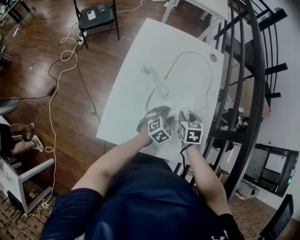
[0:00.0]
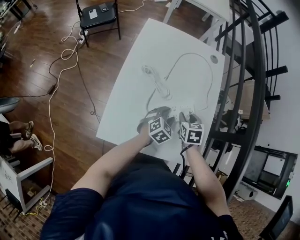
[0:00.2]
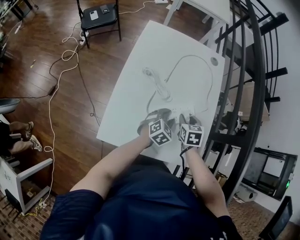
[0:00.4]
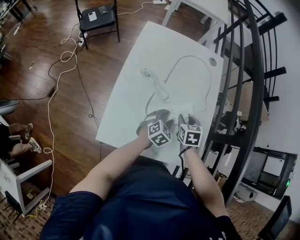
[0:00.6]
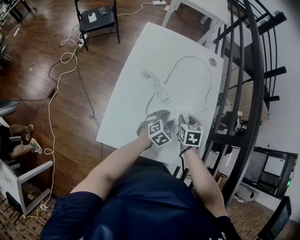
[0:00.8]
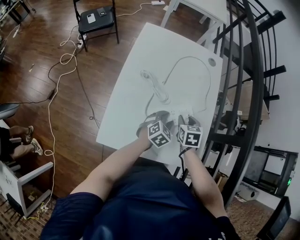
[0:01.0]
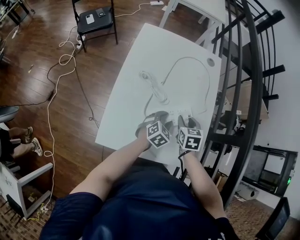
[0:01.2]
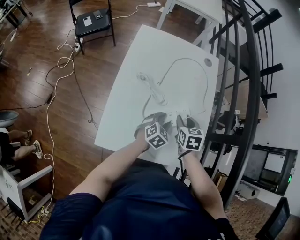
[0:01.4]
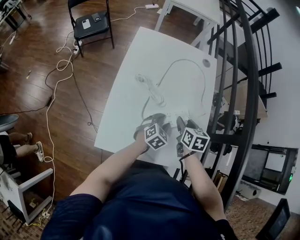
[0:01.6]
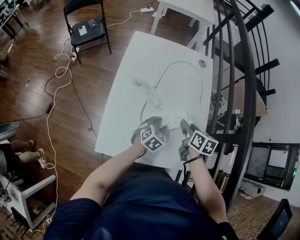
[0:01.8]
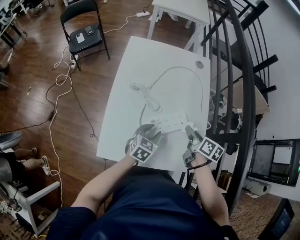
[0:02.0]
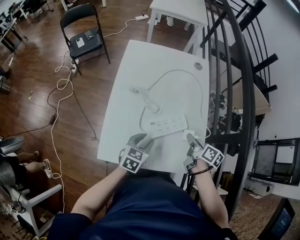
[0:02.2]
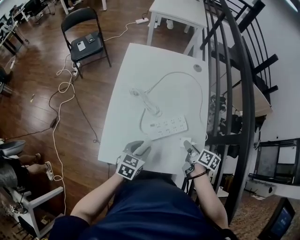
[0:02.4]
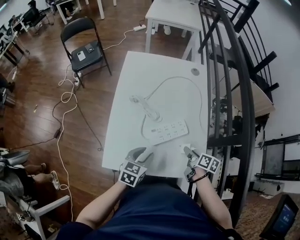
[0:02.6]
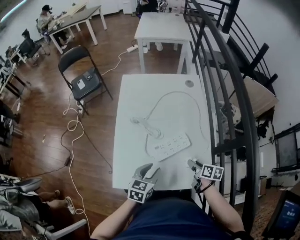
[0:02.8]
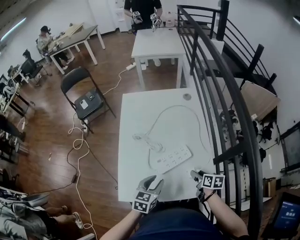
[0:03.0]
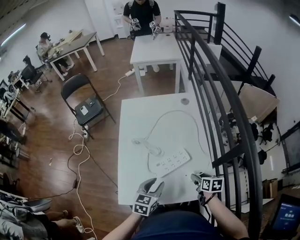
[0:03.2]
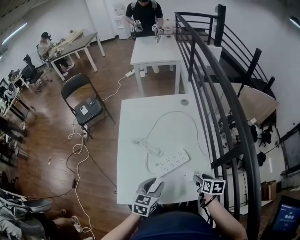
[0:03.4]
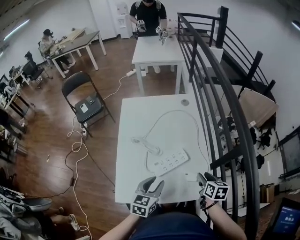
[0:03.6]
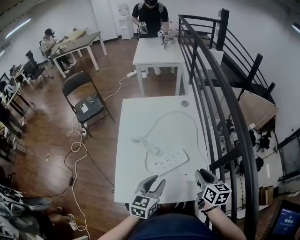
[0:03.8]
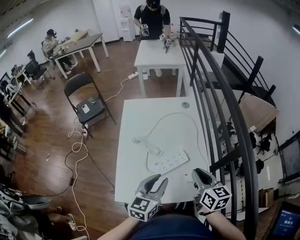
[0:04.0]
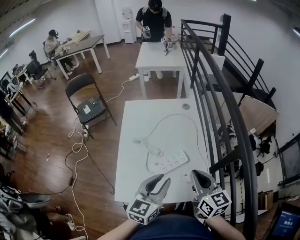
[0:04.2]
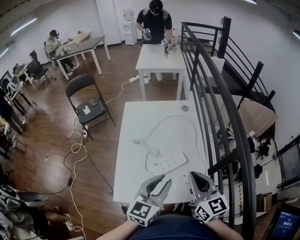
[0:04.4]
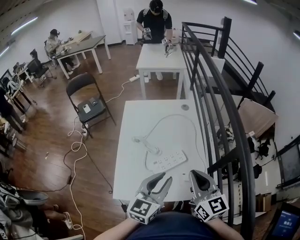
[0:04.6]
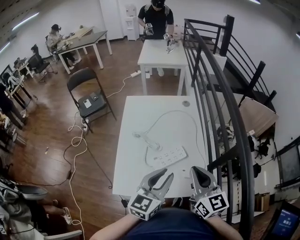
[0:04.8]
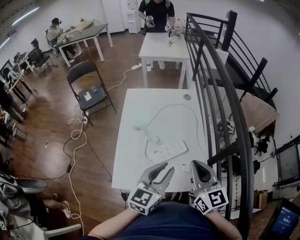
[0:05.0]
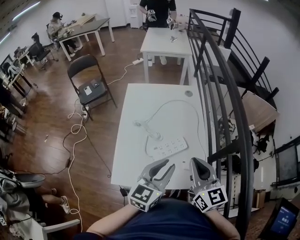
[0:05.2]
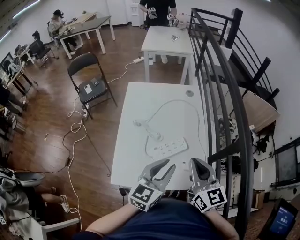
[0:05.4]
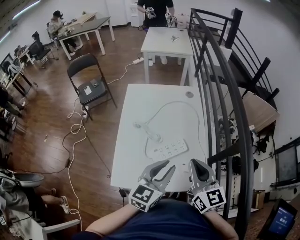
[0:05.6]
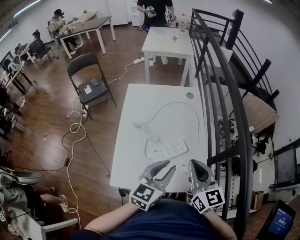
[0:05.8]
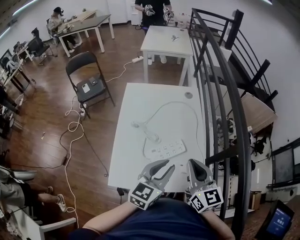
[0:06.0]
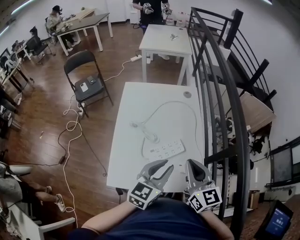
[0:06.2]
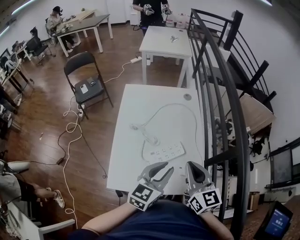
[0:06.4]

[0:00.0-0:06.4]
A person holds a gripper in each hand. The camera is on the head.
0:00.0 to 0:01.6: There are only small adjustments of the grippers.
0:01.6 to 0:03.2: The left gripper goes about 15 cm upward, backward and to the left. Meanwhile the right gripper shifts roughly 15 cm backward and to the right, swivels some 20 degrees, and opens its fingers.
0:03.2 to 0:04.8: The right gripper goes approximately 30 cm upward, tilts its fingers roughly 40 degrees upward, and closes its fingers, while the left gripper shifts roughly 20 cm upward, and changes its angle by about 30 degrees.
0:04.8 to 0:06.4: The grippers move only a little.

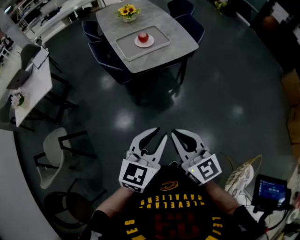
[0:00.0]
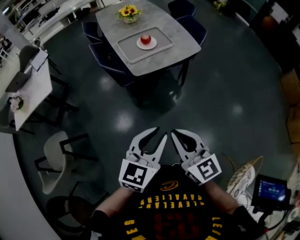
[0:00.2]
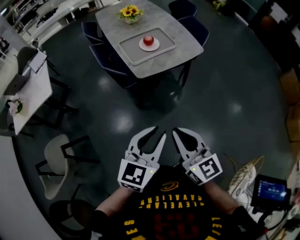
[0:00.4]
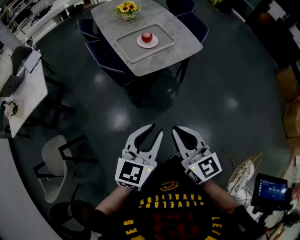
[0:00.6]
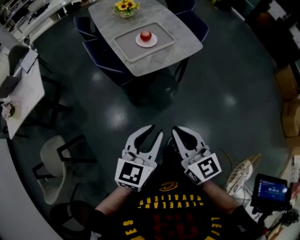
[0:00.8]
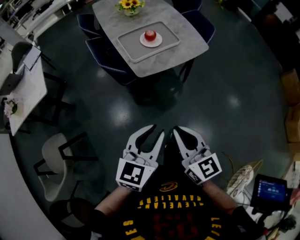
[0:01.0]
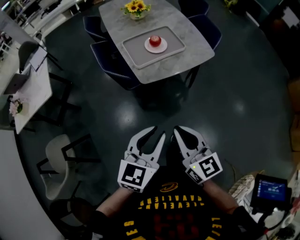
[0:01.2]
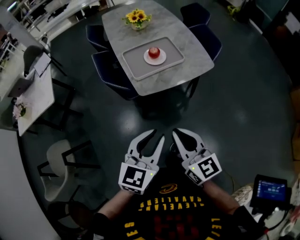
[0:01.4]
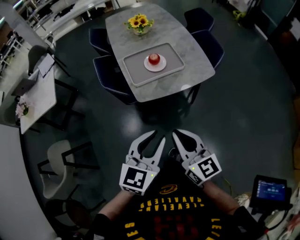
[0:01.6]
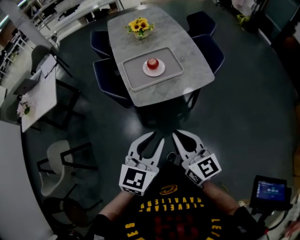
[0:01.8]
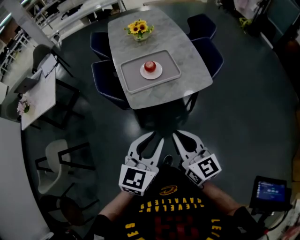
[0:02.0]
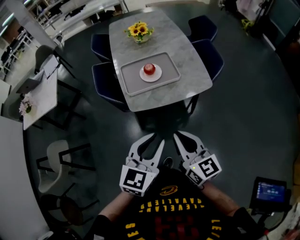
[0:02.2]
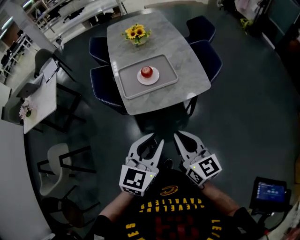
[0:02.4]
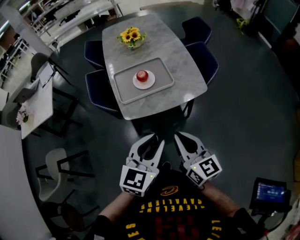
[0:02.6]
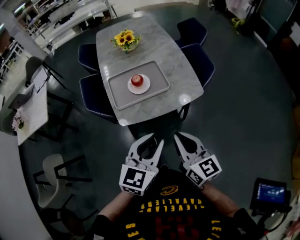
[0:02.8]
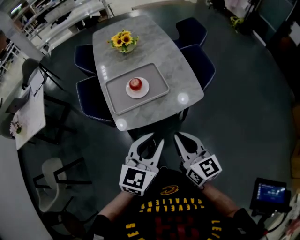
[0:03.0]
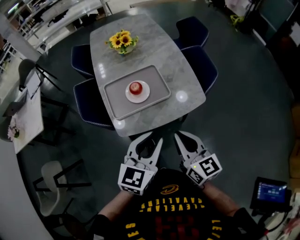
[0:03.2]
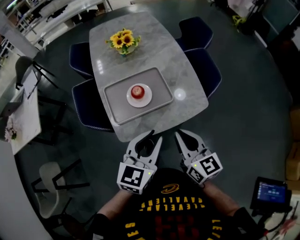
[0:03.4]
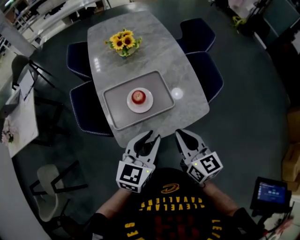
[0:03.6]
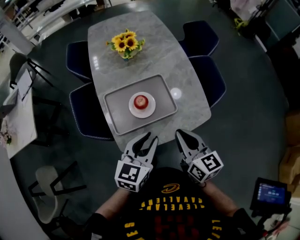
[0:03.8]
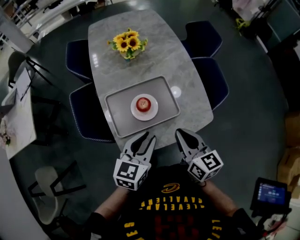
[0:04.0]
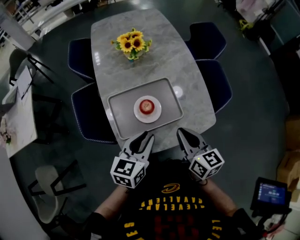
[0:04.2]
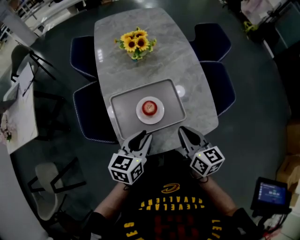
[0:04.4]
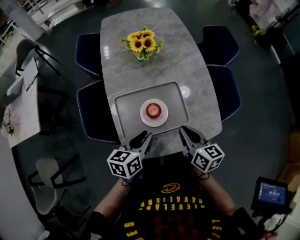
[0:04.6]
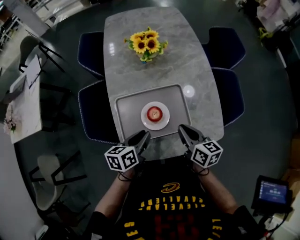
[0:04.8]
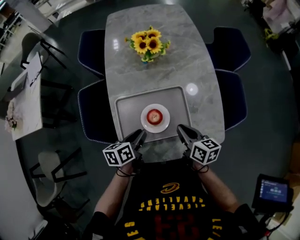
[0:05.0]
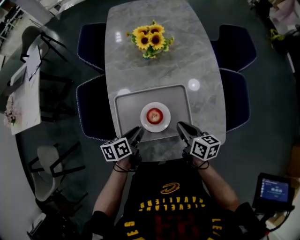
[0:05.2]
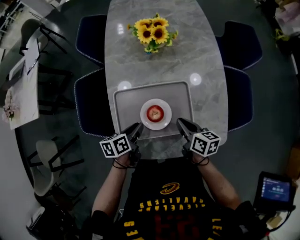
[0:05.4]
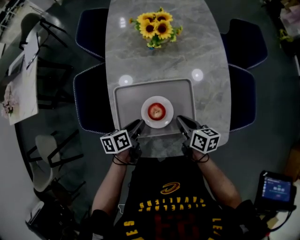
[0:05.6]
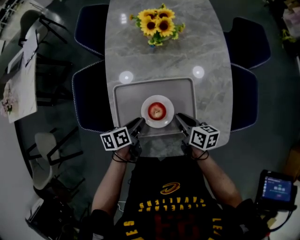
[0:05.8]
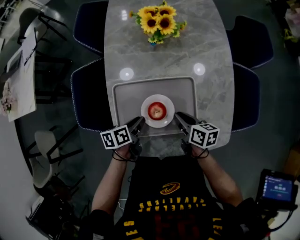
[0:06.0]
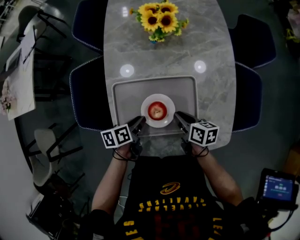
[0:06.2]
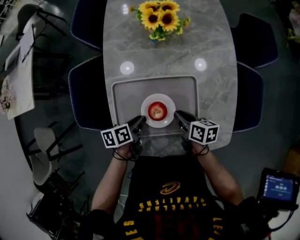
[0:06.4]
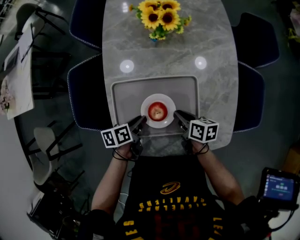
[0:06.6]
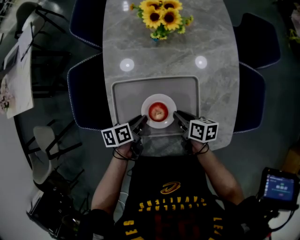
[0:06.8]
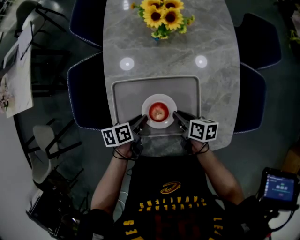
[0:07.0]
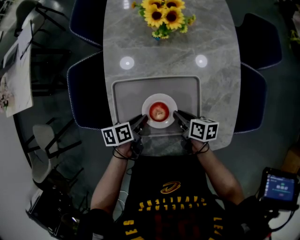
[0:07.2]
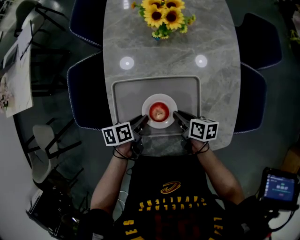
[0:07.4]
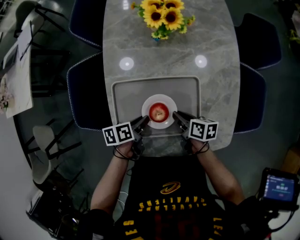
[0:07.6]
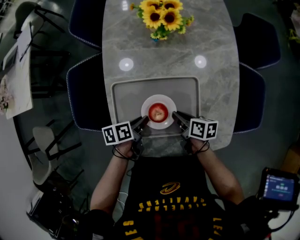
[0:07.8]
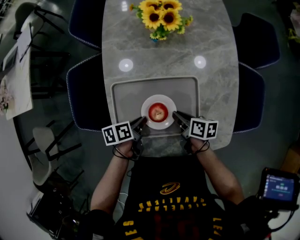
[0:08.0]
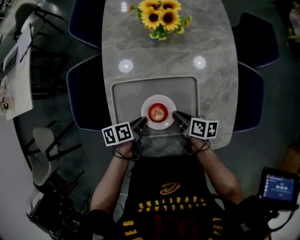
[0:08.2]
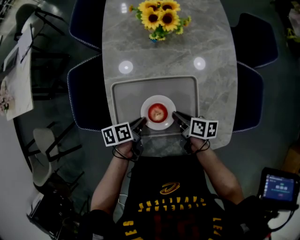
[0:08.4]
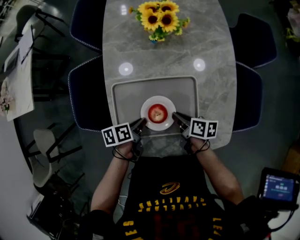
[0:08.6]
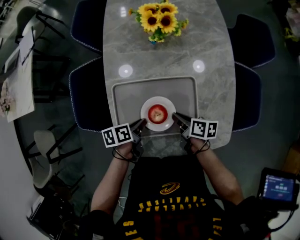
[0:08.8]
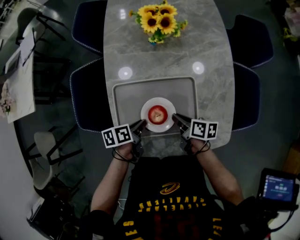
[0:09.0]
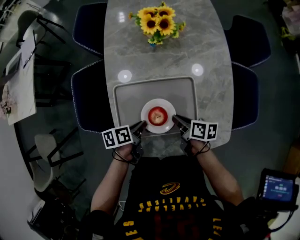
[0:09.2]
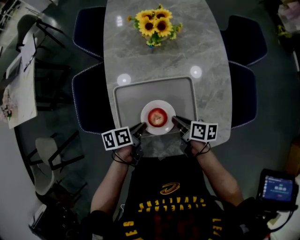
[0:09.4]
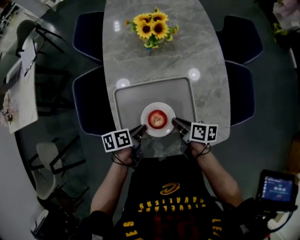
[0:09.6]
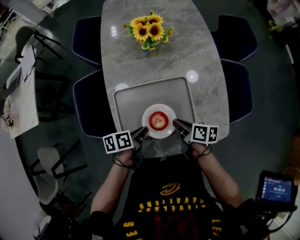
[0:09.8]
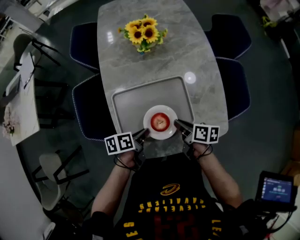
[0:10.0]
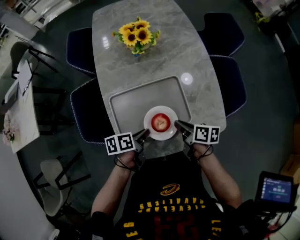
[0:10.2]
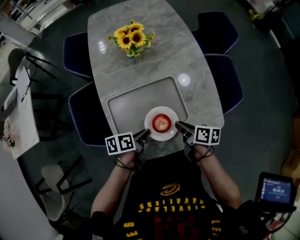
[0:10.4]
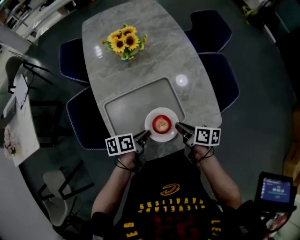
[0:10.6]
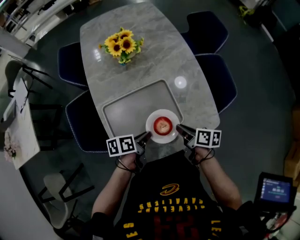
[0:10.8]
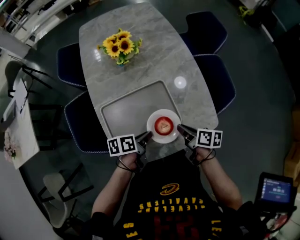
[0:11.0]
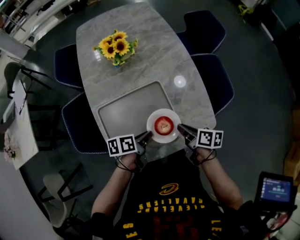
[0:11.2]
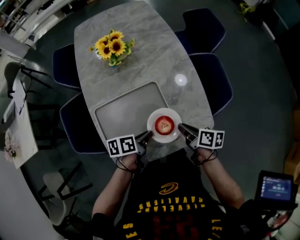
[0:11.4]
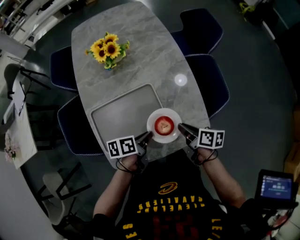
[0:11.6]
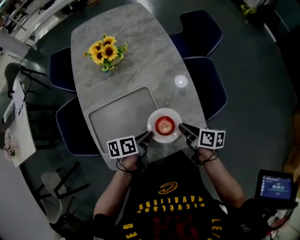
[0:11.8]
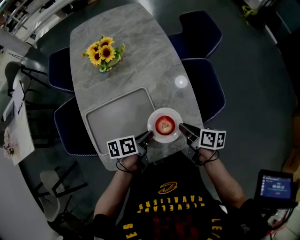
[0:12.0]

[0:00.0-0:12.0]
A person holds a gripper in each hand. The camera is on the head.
0:00.0 to 0:01.6: Both grippers move forward, about 20 cm.
0:01.6 to 0:03.0: Both grippers travel together forward and to the right, approximately 20 cm.
0:03.0 to 0:04.4: The right gripper goes some 25 cm forward. The left gripper travels forward, to the left and downward by some 30 cm, and rotates approximately 30 degrees.
0:04.4 to 0:06.0: Both grippers move downward and forward, some 25 cm. The left gripper twists approximately 40 degrees counterclockwise, seen from behind, while the right gripper rotates about 30 degrees.
0:06.0 to 0:09.0: The grippers move only a little.
0:09.0 to 0:10.4: The right gripper heads backward and upward, covering approximately 10 cm. Meanwhile the left gripper heads upward, covering approximately 5 cm.
0:10.4 to 0:12.0: Both grippers move to the right, some 15 cm.

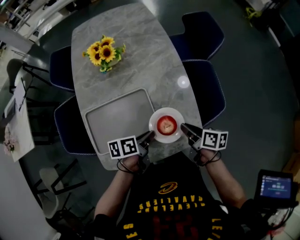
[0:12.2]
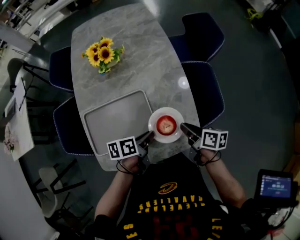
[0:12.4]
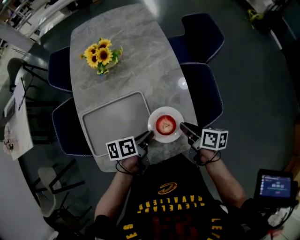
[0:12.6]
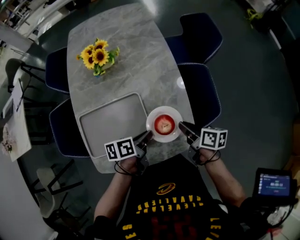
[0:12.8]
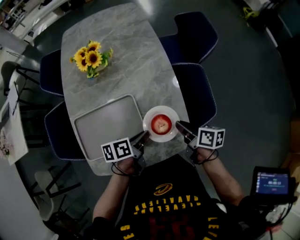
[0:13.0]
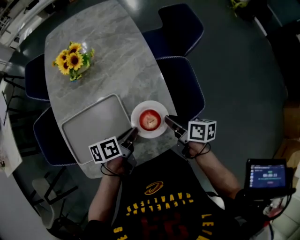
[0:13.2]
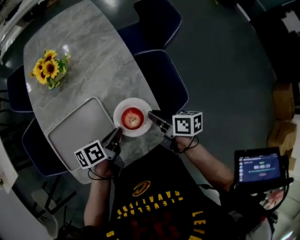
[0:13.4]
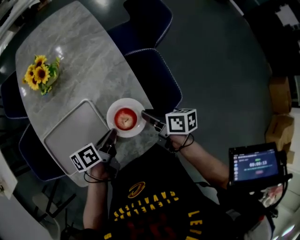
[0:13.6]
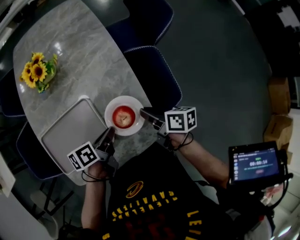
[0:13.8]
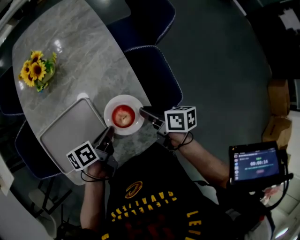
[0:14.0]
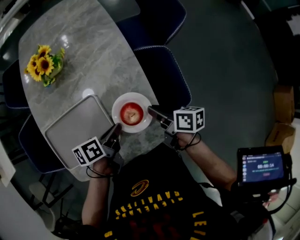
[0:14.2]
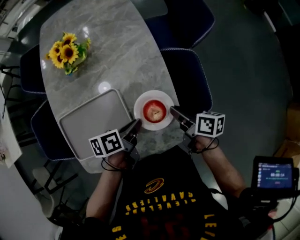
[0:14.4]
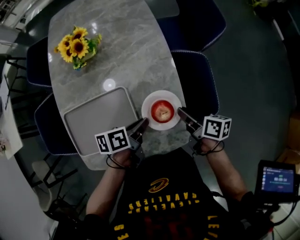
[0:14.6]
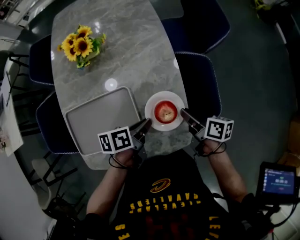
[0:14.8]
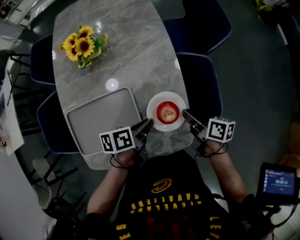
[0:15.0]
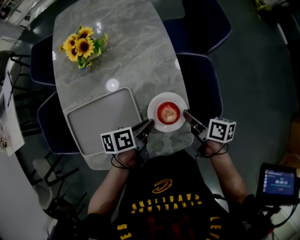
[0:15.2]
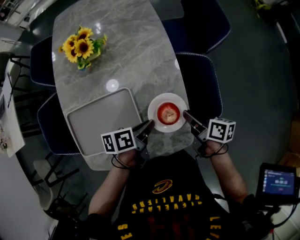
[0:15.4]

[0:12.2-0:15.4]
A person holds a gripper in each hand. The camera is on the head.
0:12.2 to 0:13.8: The left gripper moves to the right and forward, about 10 cm. Meanwhile the right gripper shifts about 10 cm forward and to the right.
0:13.8 to 0:15.4: The grippers stay close to where they were, moving slightly.

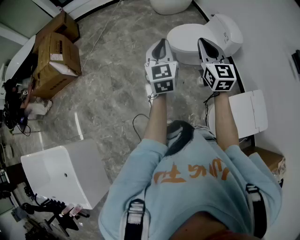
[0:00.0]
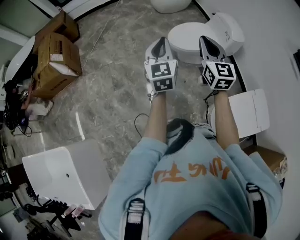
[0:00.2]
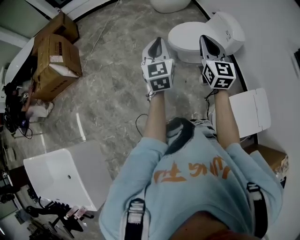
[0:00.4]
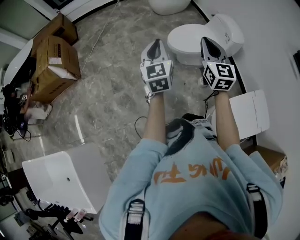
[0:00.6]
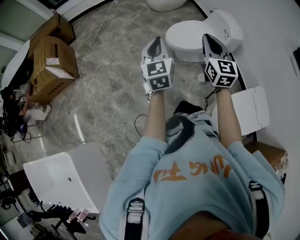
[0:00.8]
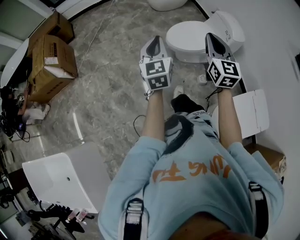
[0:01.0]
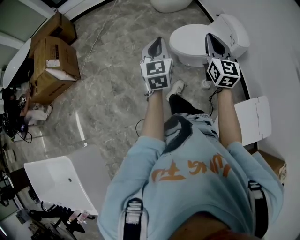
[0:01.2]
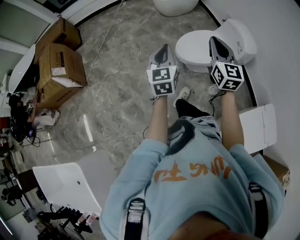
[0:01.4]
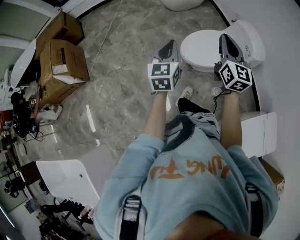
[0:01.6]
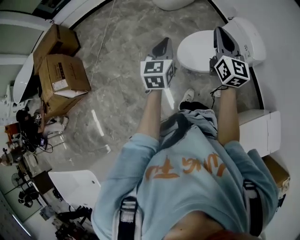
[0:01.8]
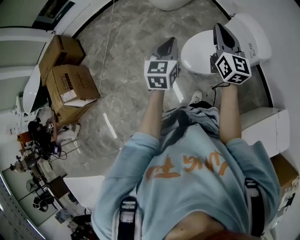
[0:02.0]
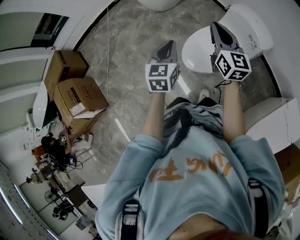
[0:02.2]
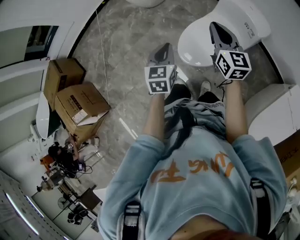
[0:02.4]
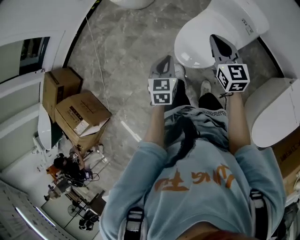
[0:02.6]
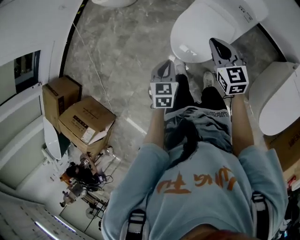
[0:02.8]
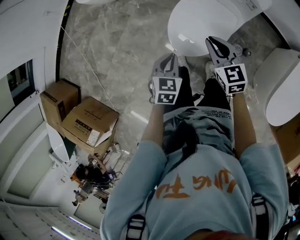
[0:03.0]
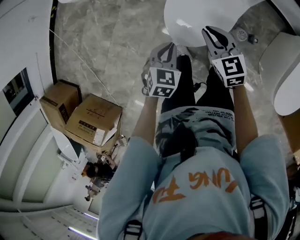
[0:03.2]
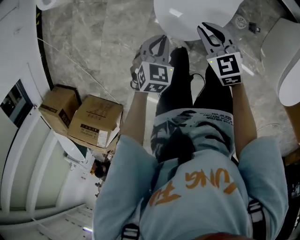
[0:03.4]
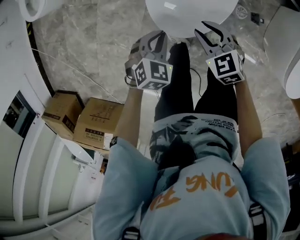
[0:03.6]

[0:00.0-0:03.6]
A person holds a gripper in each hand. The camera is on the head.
0:00.0 to 0:01.8: The pair of grippers is taken forward, some 40 cm. The right gripper changes its angle by approximately 20 degrees.
0:01.8 to 0:03.6: The two grippers go approximately 50 cm downward. The right gripper tips its fingers downward by roughly 50 degrees. The left gripper angles its fingers downward, by approximately 40 degrees.
